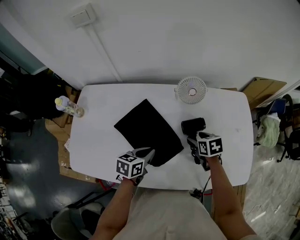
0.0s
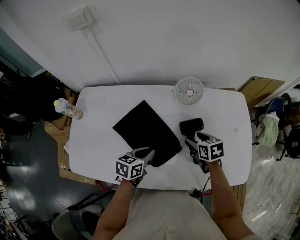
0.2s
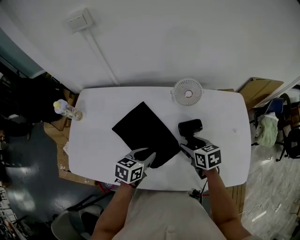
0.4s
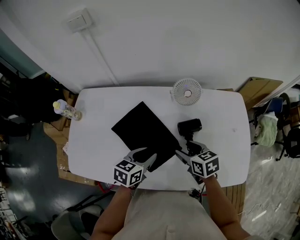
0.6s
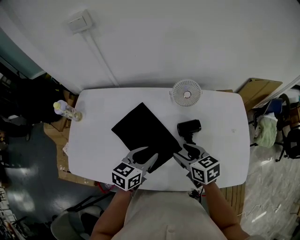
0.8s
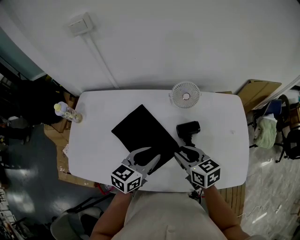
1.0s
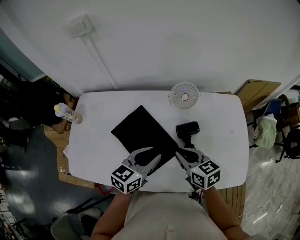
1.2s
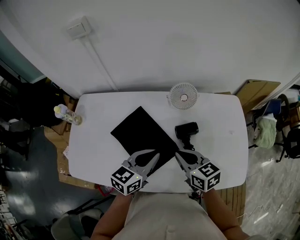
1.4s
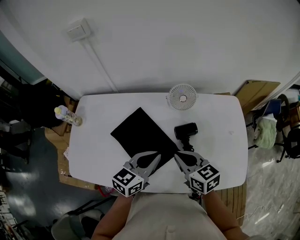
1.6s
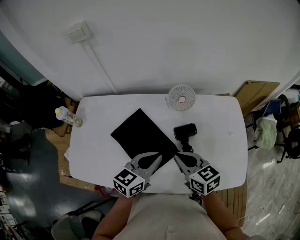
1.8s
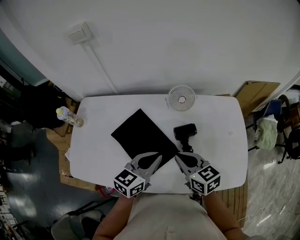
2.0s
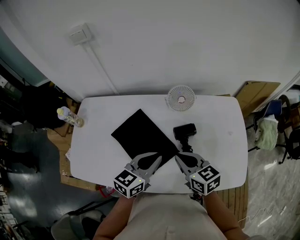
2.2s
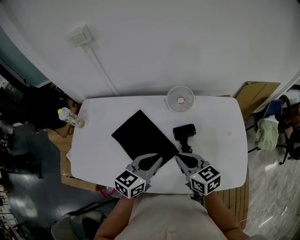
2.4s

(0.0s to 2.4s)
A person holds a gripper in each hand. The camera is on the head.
0.0s - 1.2s: The left gripper shifts about 10 cm upward, turns by approximately 20 degrees, and opens its fingers; the right gripper goes roughly 15 cm upward, to the left and backward, changes its angle by about 30 degrees, and closes.
1.2s - 2.4s: The left gripper closes.

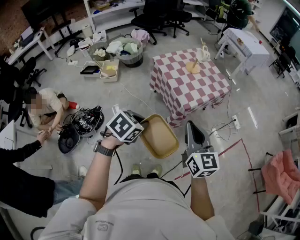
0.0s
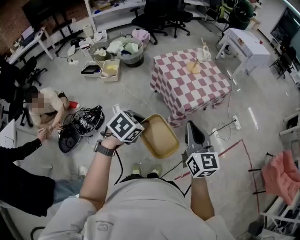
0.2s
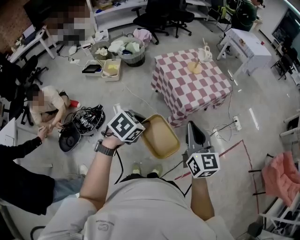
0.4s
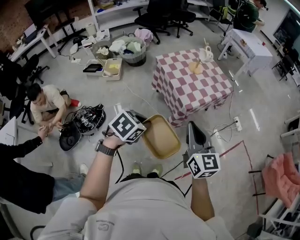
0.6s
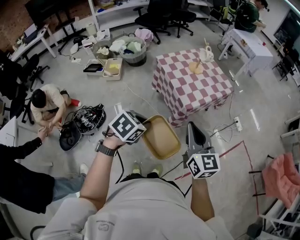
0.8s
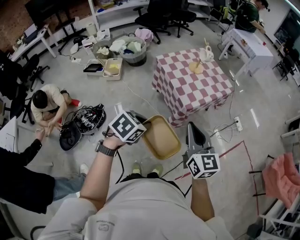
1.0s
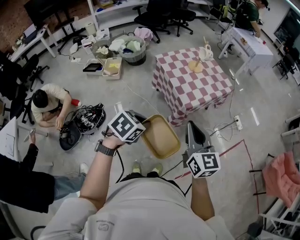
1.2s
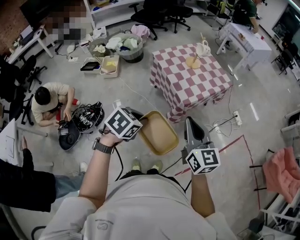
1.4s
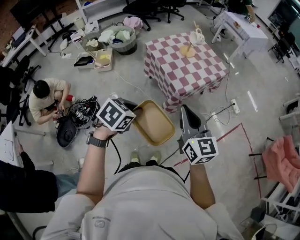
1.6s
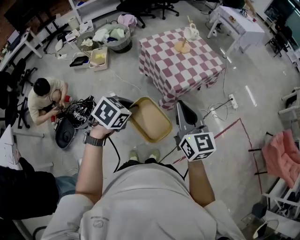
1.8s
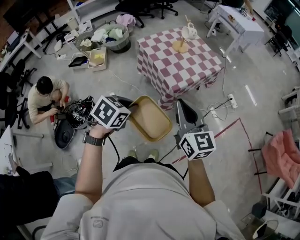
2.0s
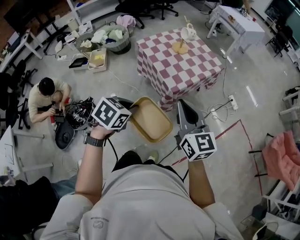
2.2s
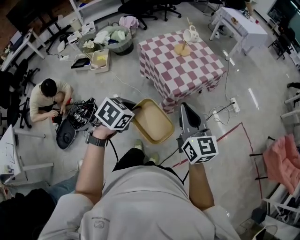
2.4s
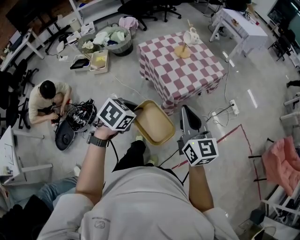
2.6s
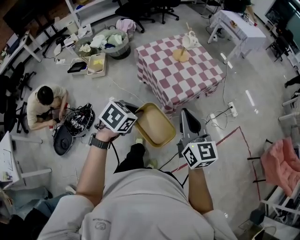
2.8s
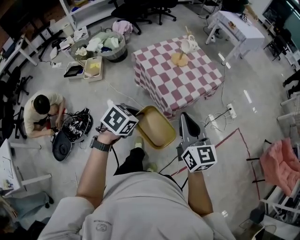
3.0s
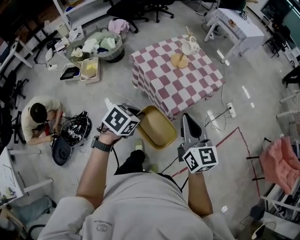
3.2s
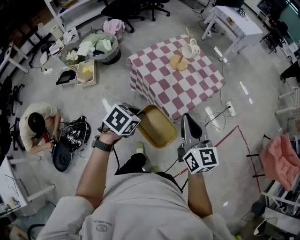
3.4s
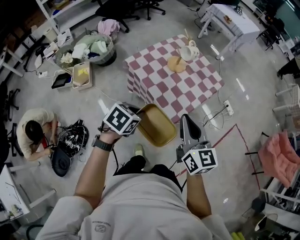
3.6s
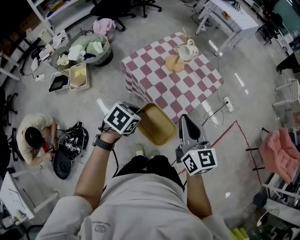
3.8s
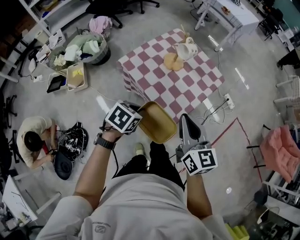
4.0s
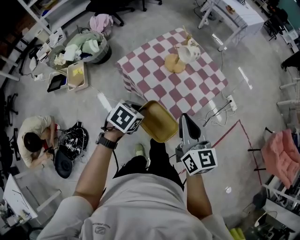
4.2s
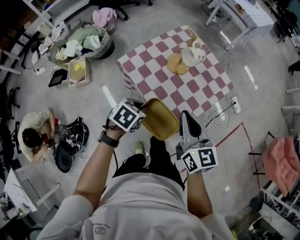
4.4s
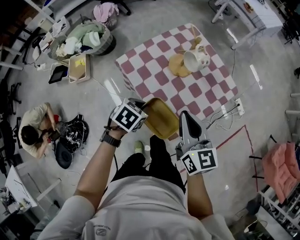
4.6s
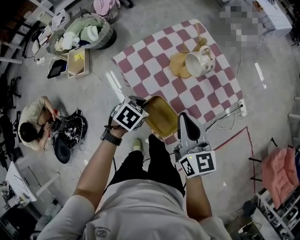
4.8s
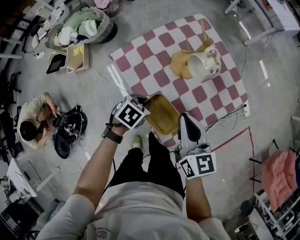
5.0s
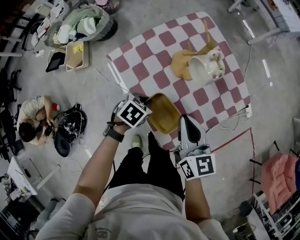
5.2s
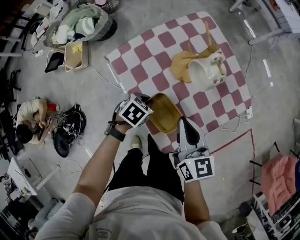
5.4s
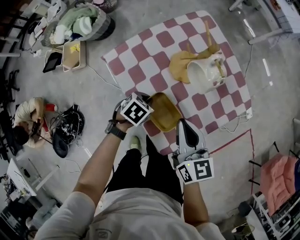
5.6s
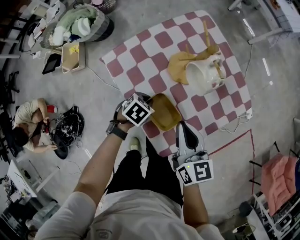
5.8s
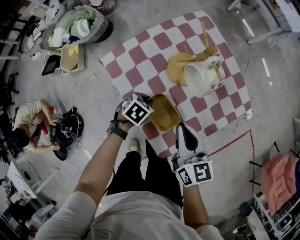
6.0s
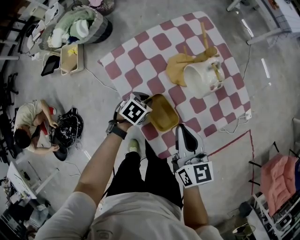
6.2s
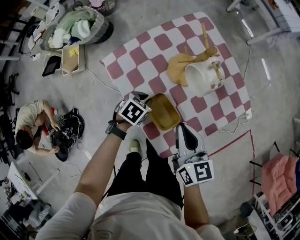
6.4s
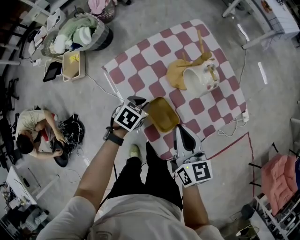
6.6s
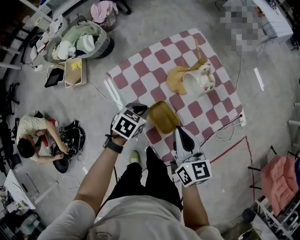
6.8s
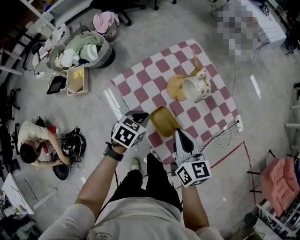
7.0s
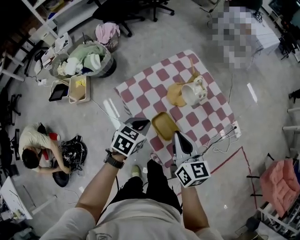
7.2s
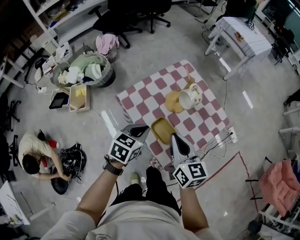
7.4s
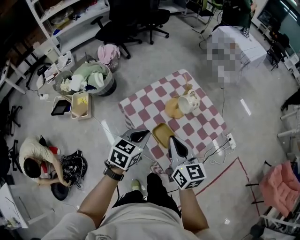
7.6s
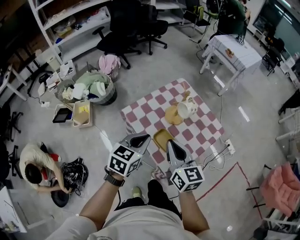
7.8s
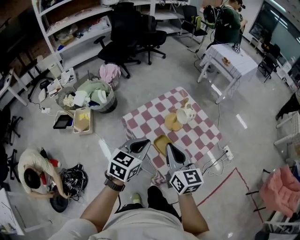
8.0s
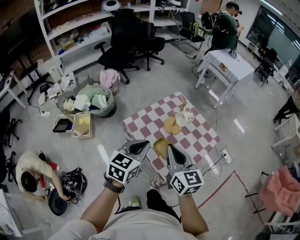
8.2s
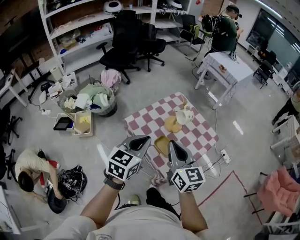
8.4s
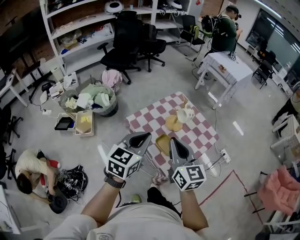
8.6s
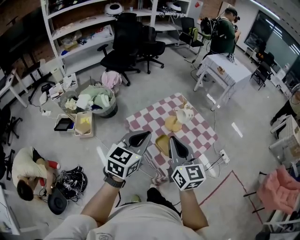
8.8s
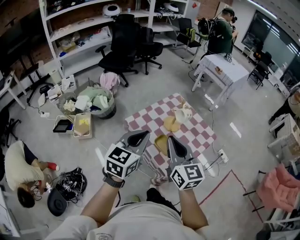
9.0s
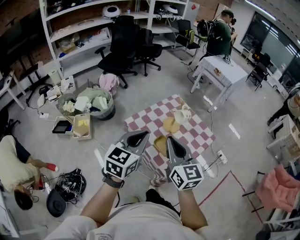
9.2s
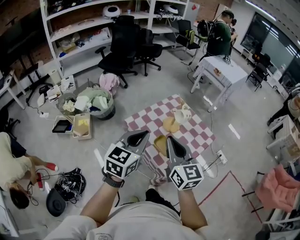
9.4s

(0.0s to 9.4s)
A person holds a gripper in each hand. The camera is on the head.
0.0s - 1.6s: The grippers make only small movements.
1.6s - 3.2s: The grippers both shift forward by roughly 20 cm.
3.2s - 4.8s: The two grippers go some 35 cm forward and downward.
4.8s - 6.2s: Both grippers travel together downward and forward, roughly 15 cm.
6.2s - 7.8s: The right gripper goes some 20 cm upward and backward. Meanwhile the left gripper is displaced upward by some 35 cm, and angles its fingers upward, by some 30 degrees.
7.8s - 9.4s: The grippers both shift upward and backward by roughly 15 cm.

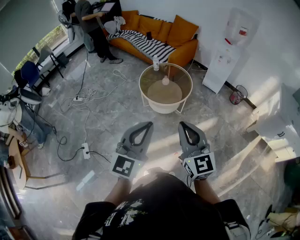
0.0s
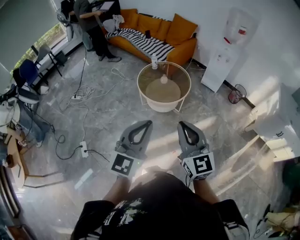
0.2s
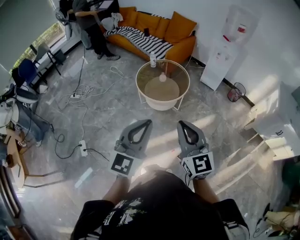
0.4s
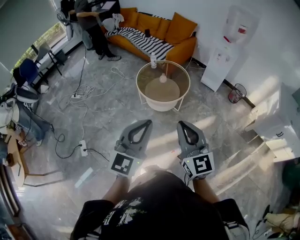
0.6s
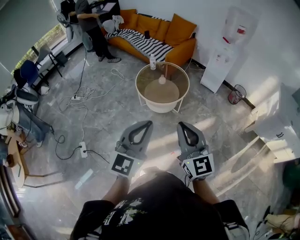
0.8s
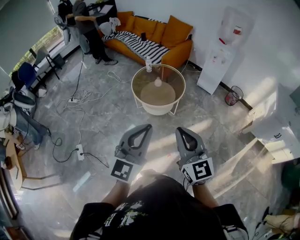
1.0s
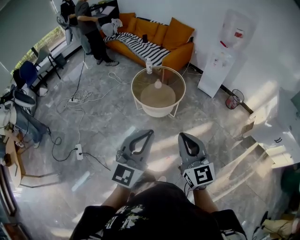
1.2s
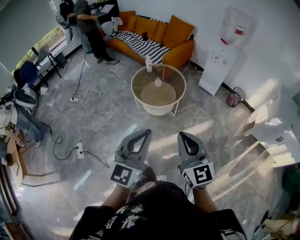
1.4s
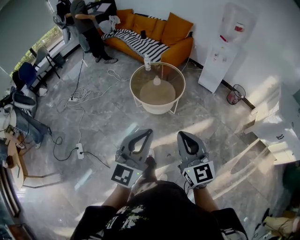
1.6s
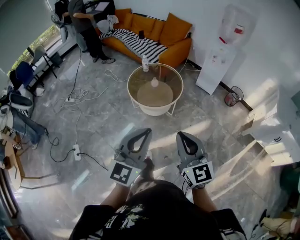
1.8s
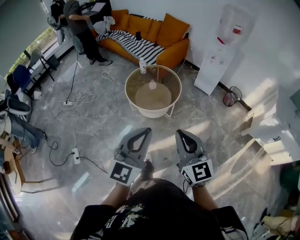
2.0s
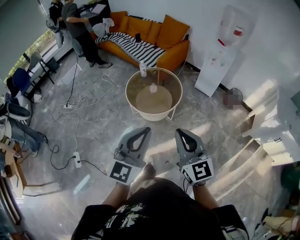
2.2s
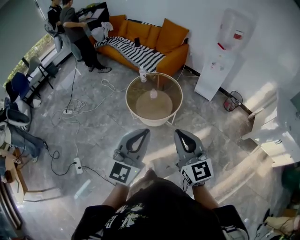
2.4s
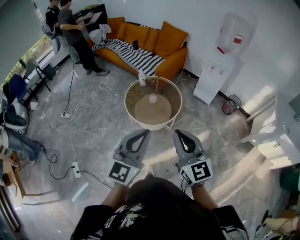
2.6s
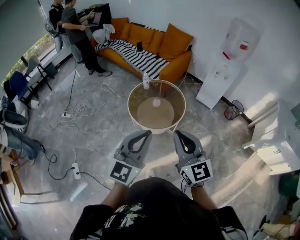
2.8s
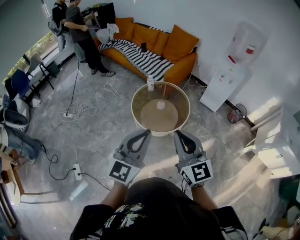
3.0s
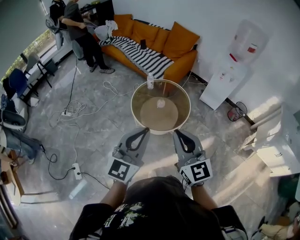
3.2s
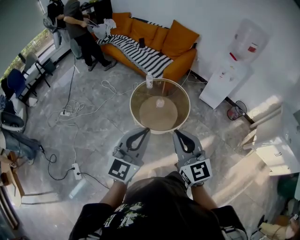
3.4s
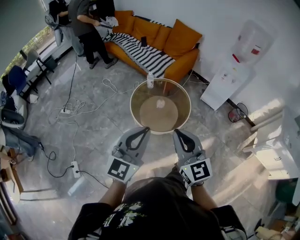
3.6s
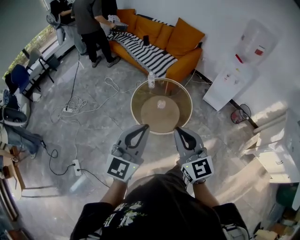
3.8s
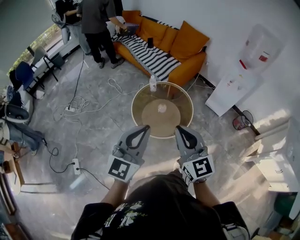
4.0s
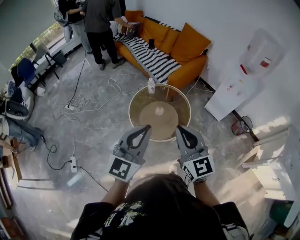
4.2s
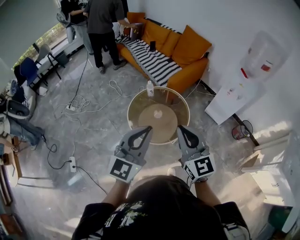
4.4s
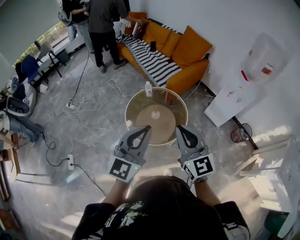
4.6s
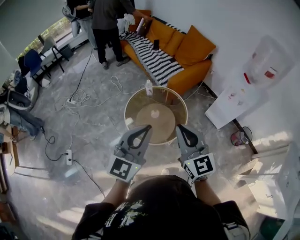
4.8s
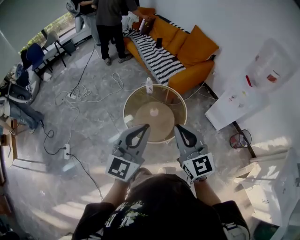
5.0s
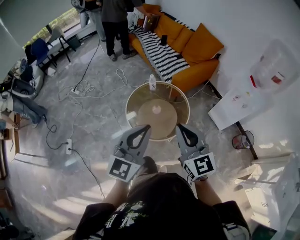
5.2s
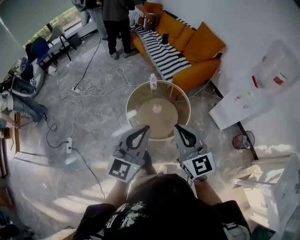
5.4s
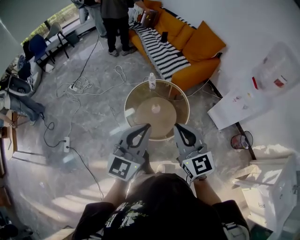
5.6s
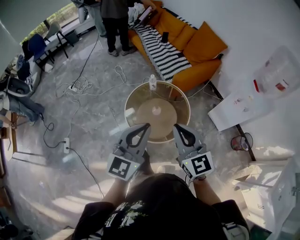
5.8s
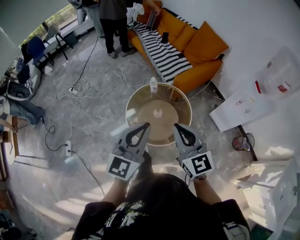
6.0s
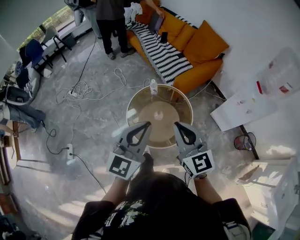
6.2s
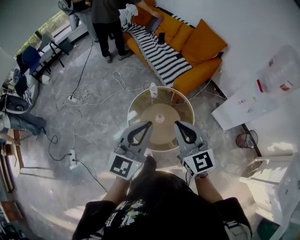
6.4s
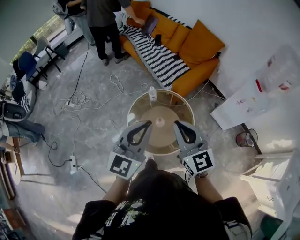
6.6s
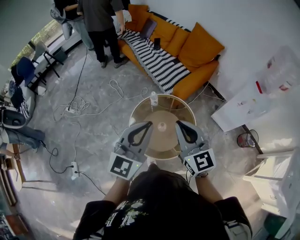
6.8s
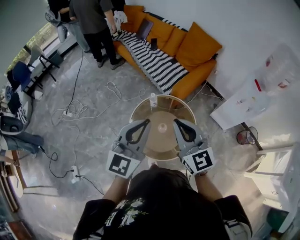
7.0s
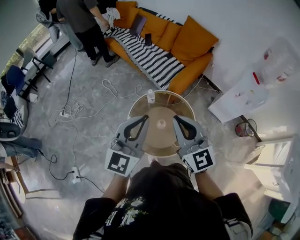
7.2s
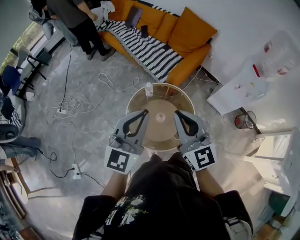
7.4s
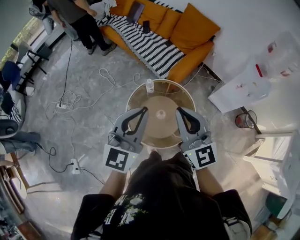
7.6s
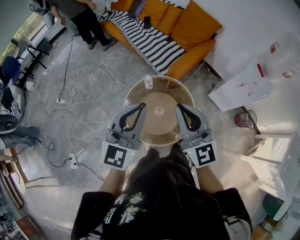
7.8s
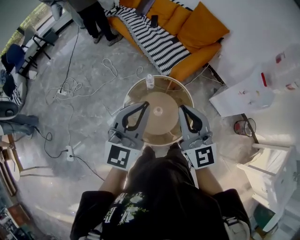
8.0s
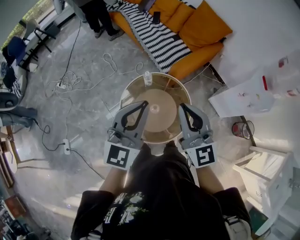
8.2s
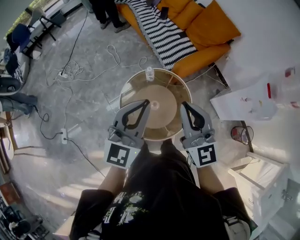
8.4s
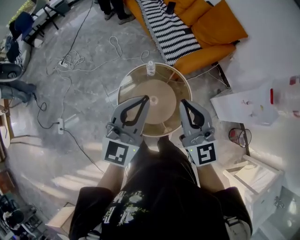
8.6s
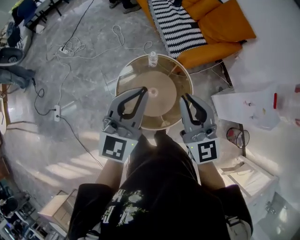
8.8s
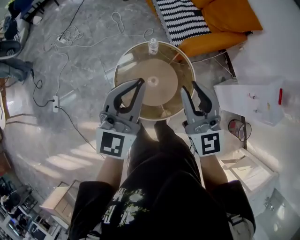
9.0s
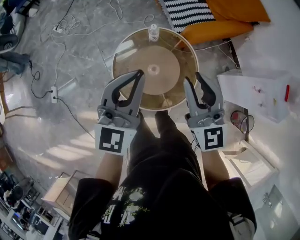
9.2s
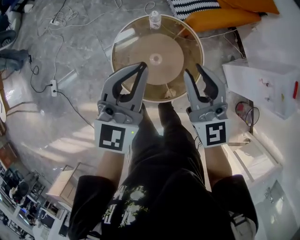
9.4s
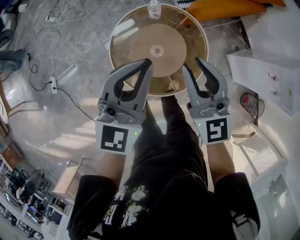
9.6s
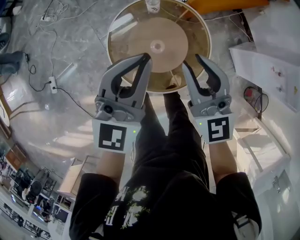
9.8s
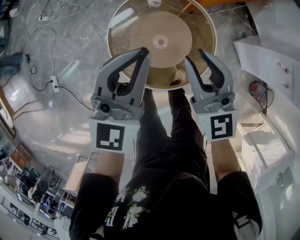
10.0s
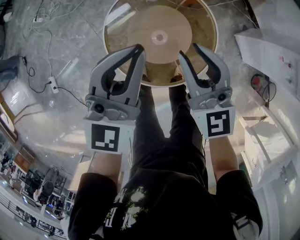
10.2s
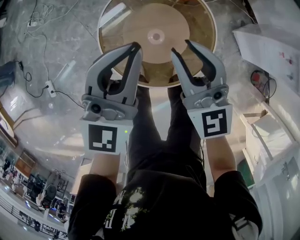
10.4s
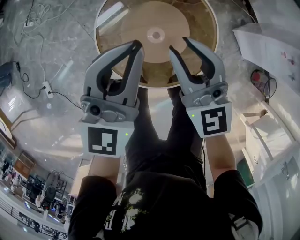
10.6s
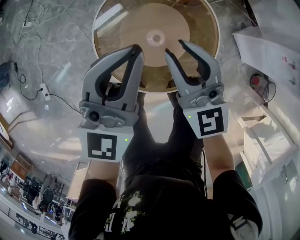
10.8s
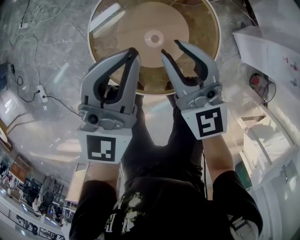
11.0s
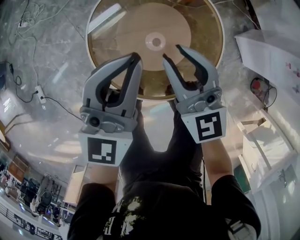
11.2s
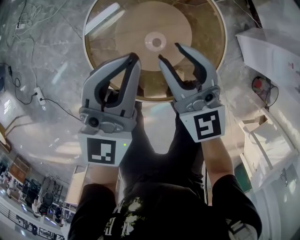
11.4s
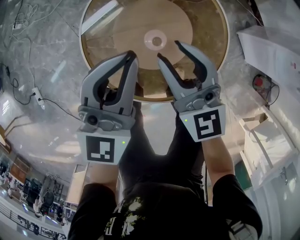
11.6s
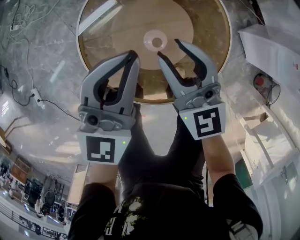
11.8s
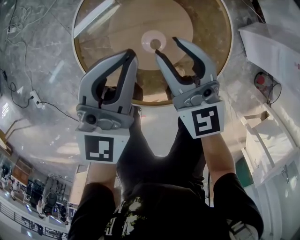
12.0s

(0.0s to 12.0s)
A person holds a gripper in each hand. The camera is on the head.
0.0s - 1.6s: The grippers both shift to the right by about 10 cm.
1.6s - 3.0s: The grippers both shift forward and to the left by some 30 cm.
3.0s - 4.4s: Both grippers move forward and to the right, about 25 cm.
4.4s - 6.0s: The grippers both shift forward by roughly 15 cm.
6.0s - 7.6s: The two grippers go about 20 cm forward and to the left.
7.6s - 9.0s: The right gripper goes roughly 15 cm downward, to the right and forward, and opens up. The left gripper heads downward and to the right, covering about 15 cm, and rotates roughly 20 degrees.
9.0s - 10.4s: The grippers both shift downward by about 25 cm.
10.4s - 12.0s: The grippers both shift downward by roughly 25 cm.
